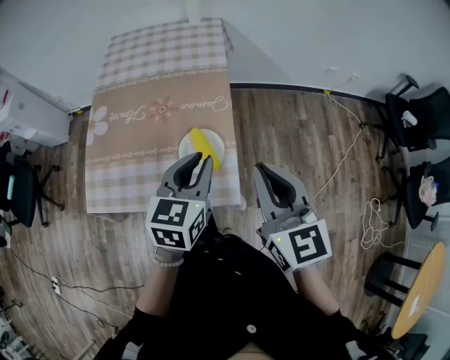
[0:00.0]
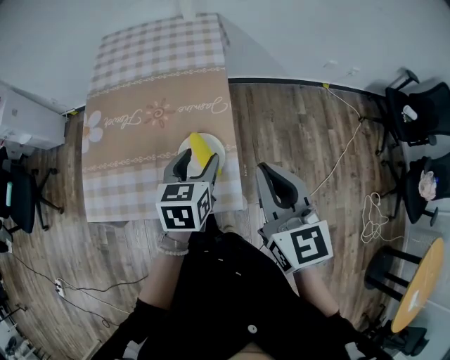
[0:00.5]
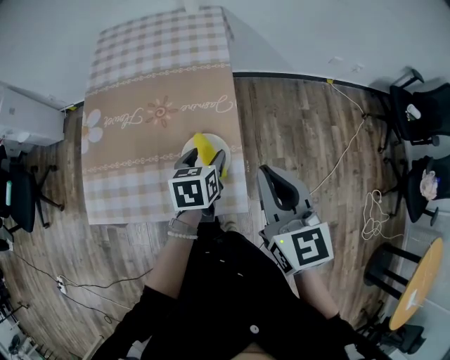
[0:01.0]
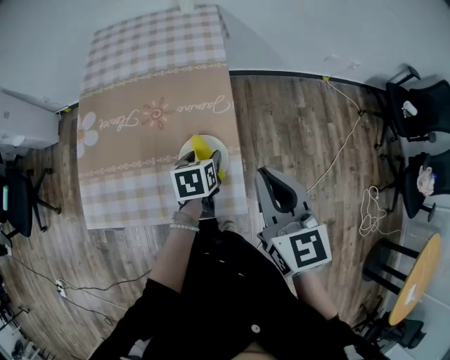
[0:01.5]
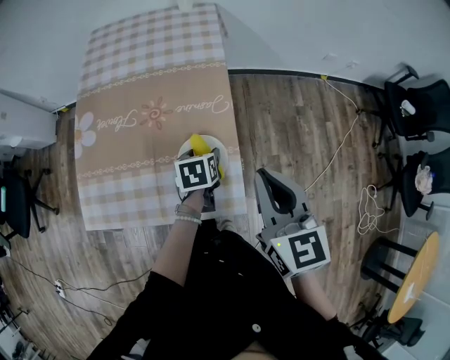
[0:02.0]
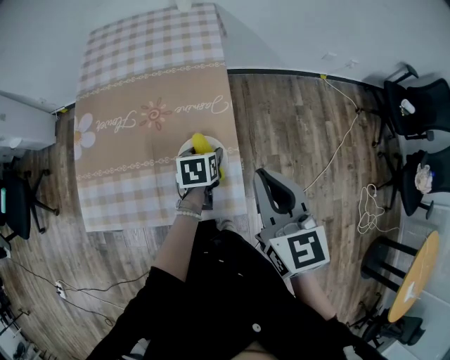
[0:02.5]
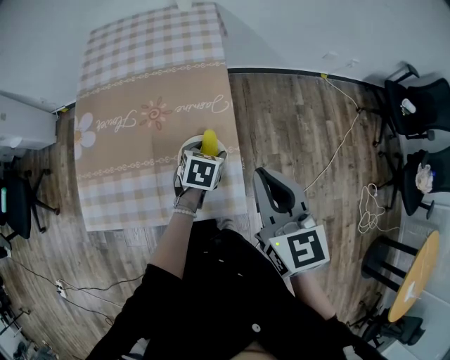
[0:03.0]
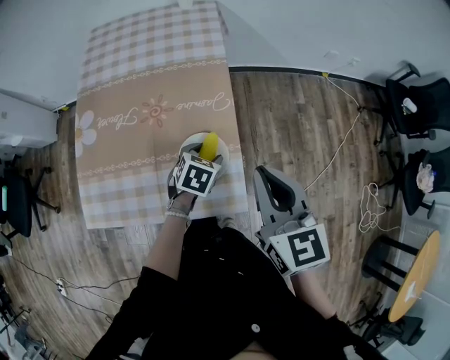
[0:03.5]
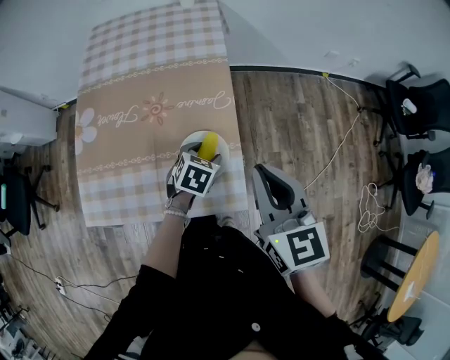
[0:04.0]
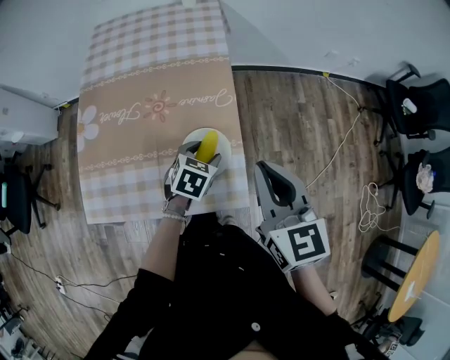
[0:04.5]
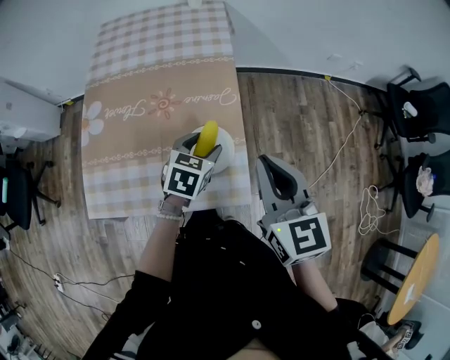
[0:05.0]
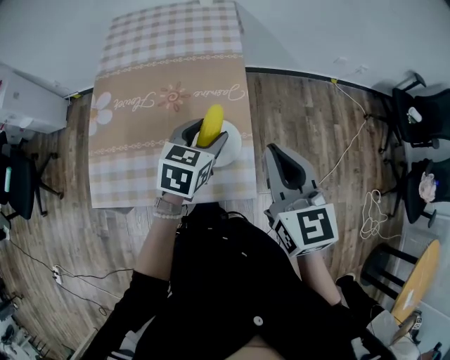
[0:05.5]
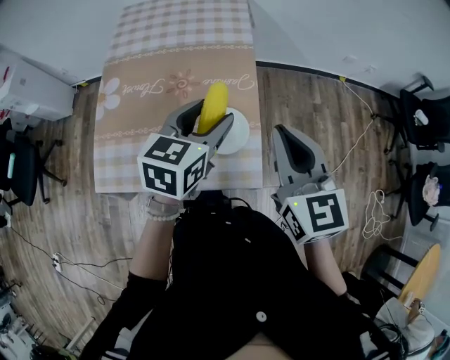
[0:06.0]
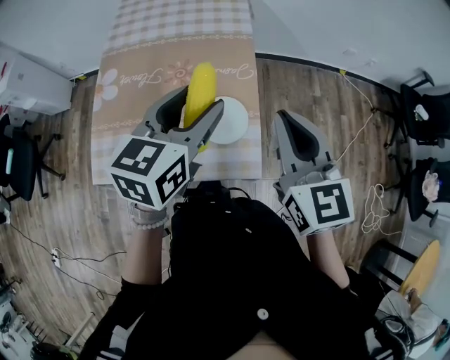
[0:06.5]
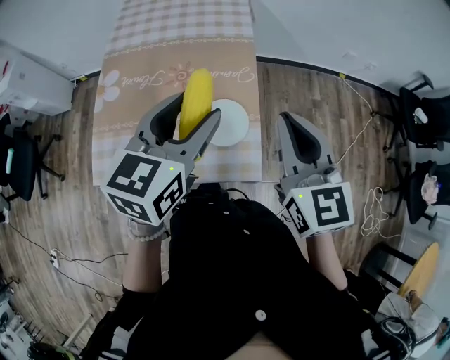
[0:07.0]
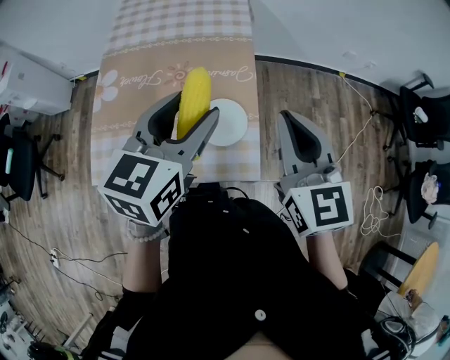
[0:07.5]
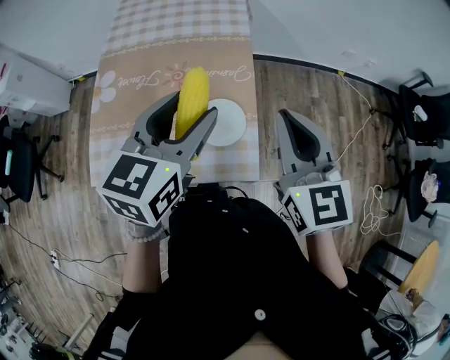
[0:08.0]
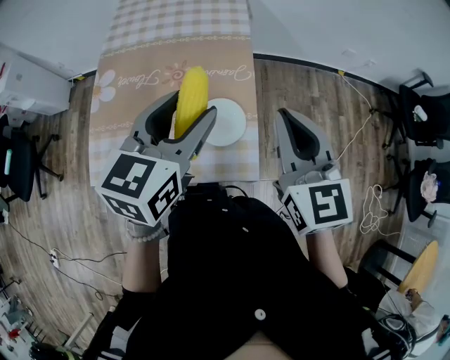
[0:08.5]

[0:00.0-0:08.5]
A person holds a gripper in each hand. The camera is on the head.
0:00.0 to 0:02.0: The right gripper goes about 5 cm forward; the left gripper heads downward and forward, covering about 25 cm, tilts its fingers some 30 degrees downward, and opens up.
0:02.0 to 0:04.0: The left gripper changes its angle by approximately 30 degrees.
0:04.0 to 0:06.5: The left gripper shifts about 25 cm upward, and angles its fingers upward, by roughly 40 degrees.
0:06.5 to 0:08.5: The grippers make only small movements.

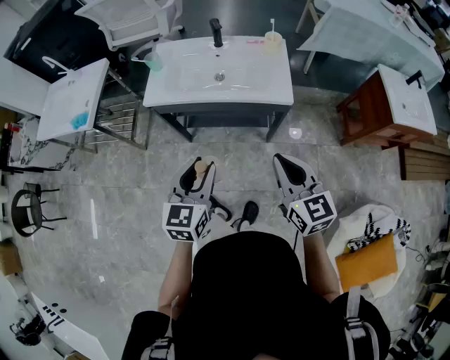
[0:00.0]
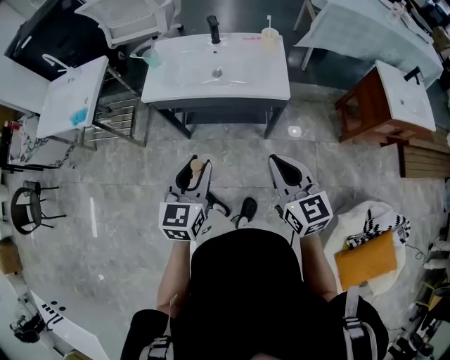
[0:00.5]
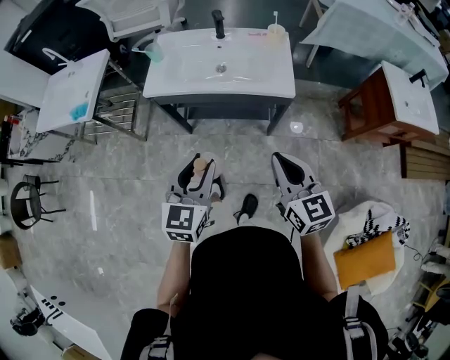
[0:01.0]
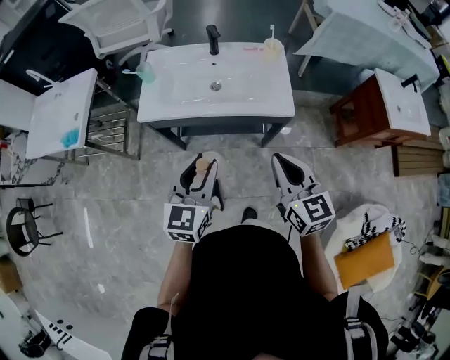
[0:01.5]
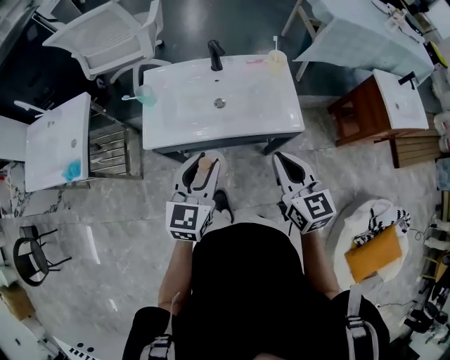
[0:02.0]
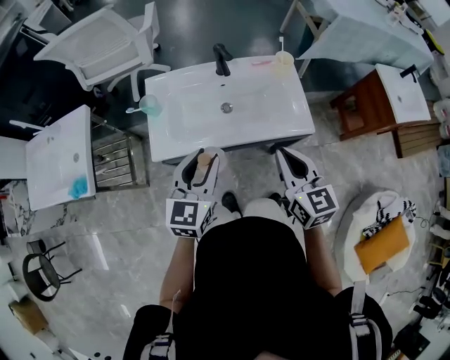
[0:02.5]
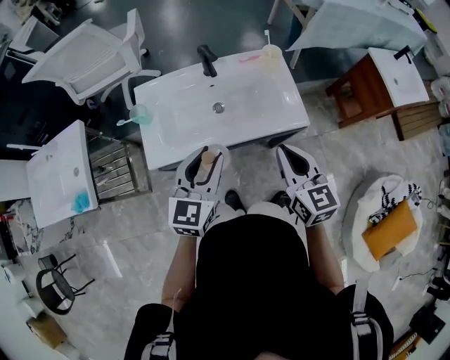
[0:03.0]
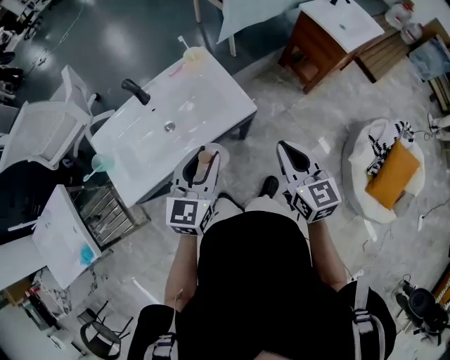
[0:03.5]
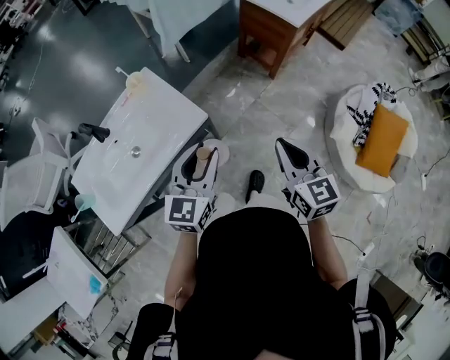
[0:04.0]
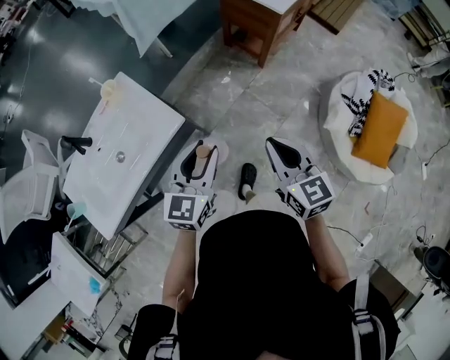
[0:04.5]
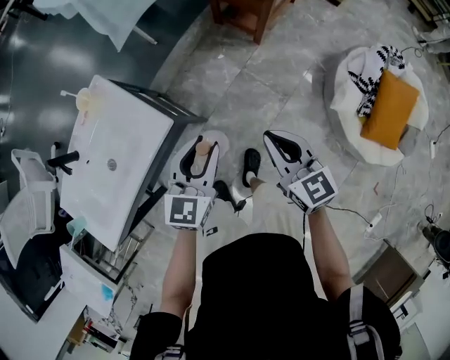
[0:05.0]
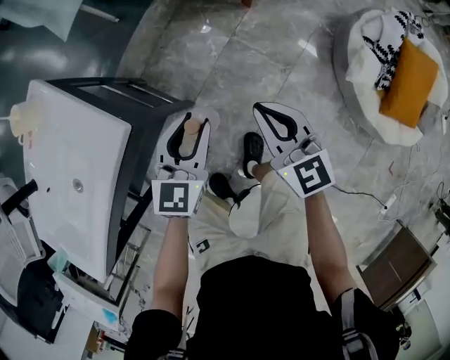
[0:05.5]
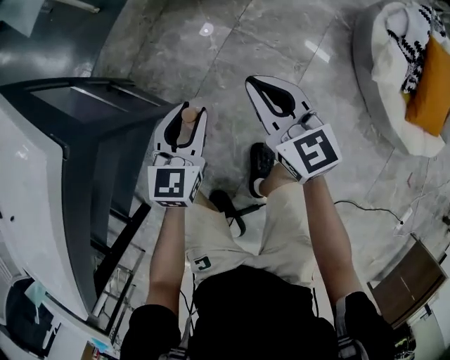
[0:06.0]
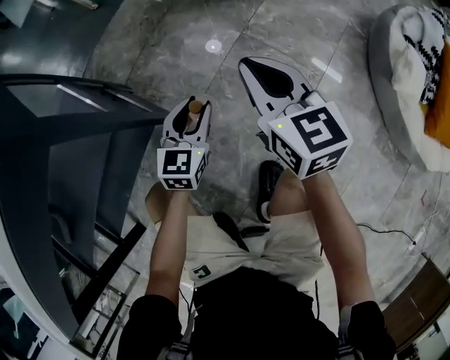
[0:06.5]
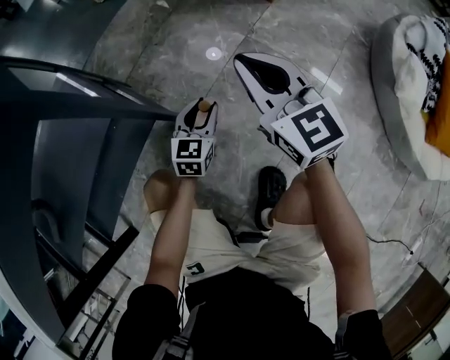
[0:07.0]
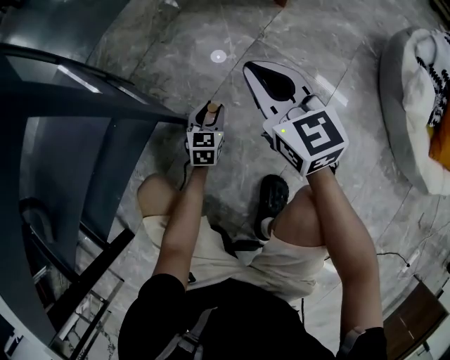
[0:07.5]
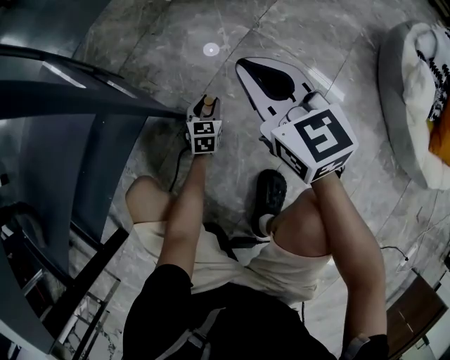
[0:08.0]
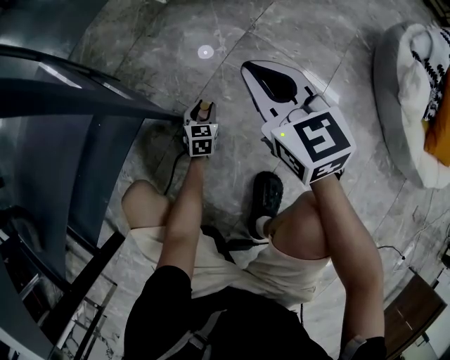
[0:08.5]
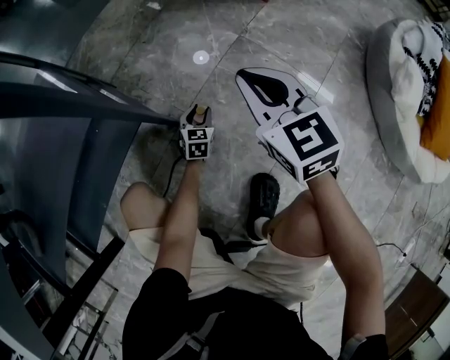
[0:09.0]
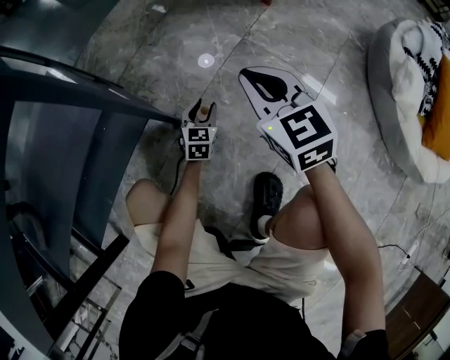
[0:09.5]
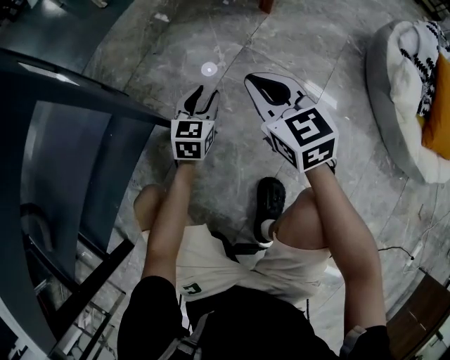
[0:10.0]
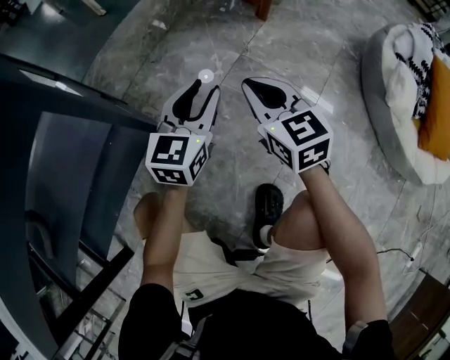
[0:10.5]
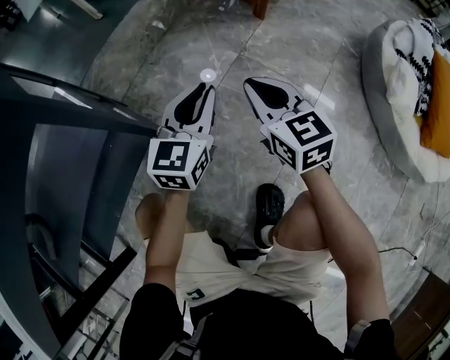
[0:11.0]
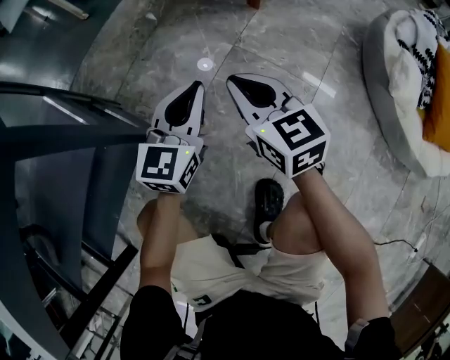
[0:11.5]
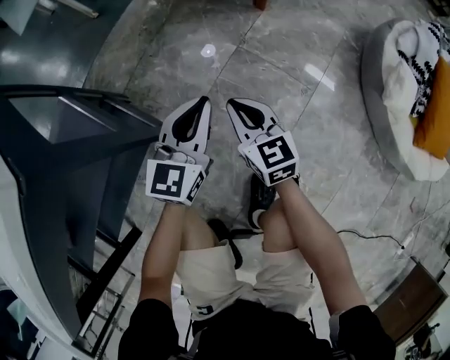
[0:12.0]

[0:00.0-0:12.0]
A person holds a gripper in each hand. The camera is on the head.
0:00.0 to 0:02.0: The left gripper goes roughly 20 cm forward; the right gripper shifts about 20 cm forward and to the left.
0:02.0 to 0:04.0: The right gripper changes place by approximately 30 cm, and changes its angle by roughly 40 degrees. The left gripper shifts by about 30 cm, and swivels some 40 degrees.
0:04.0 to 0:06.0: Both grippers travel together downward, about 50 cm.
0:06.0 to 0:08.0: The right gripper shifts about 15 cm downward and to the left. Meanwhile the left gripper shifts some 40 cm downward.
0:08.0 to 0:10.0: The left gripper heads upward, covering about 20 cm.
0:10.0 to 0:12.0: The left gripper moves upward, about 20 cm, and closes its fingers.

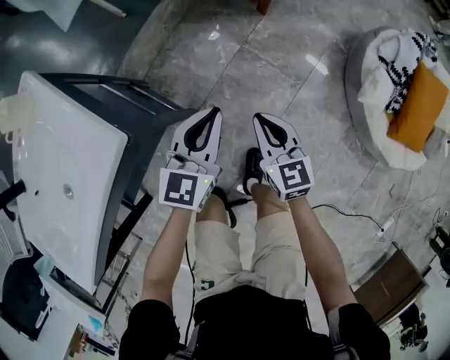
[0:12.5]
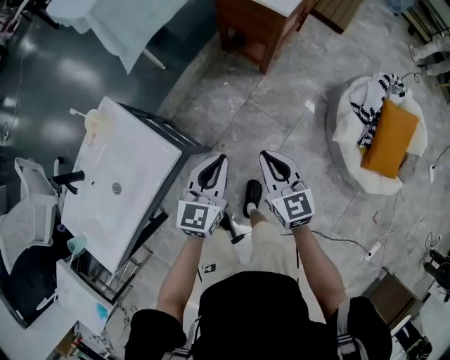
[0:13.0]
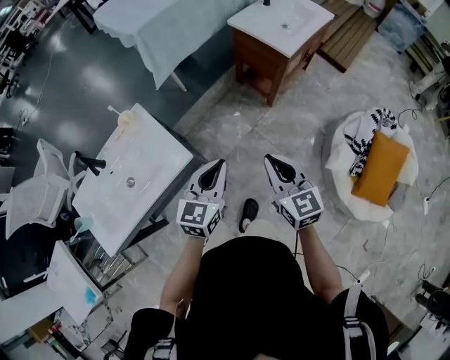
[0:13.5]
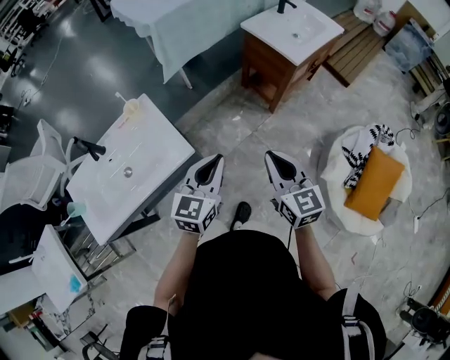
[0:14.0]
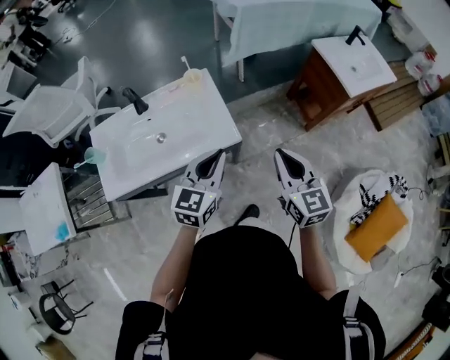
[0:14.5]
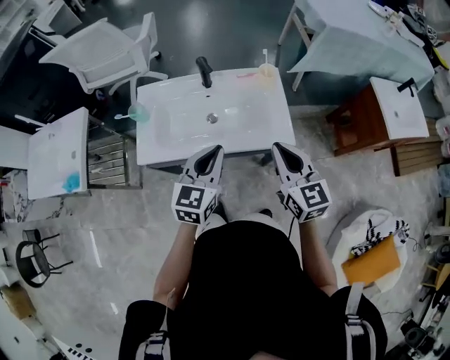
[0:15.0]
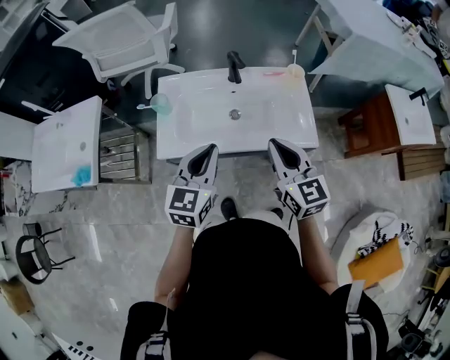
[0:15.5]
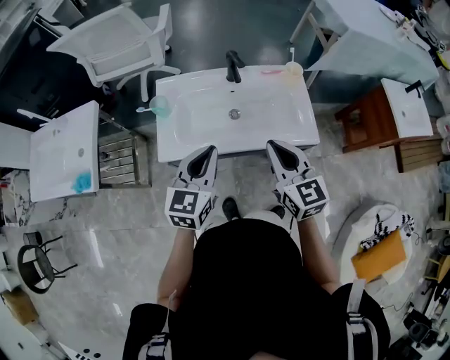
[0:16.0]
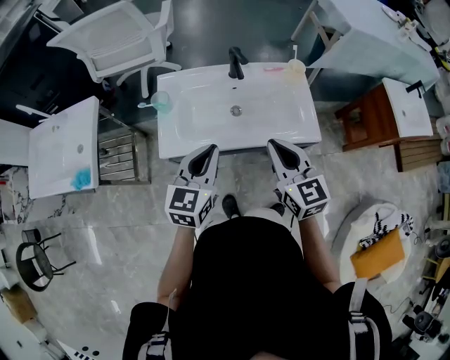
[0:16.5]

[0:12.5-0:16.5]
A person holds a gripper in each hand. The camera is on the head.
0:12.5 to 0:14.5: Both grippers travel together upward, about 40 cm. The right gripper swivels some 30 degrees. Meanwhile the left gripper changes its angle by some 30 degrees.
0:14.5 to 0:16.5: The grippers both shift to the left by some 35 cm. The left gripper rotates about 20 degrees. The right gripper swivels about 20 degrees.

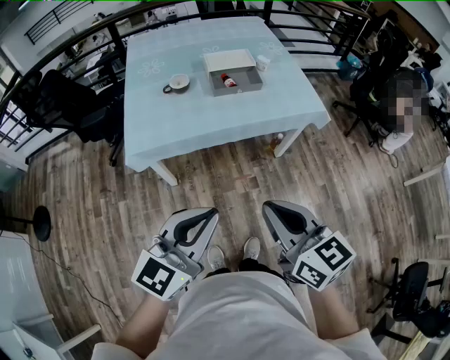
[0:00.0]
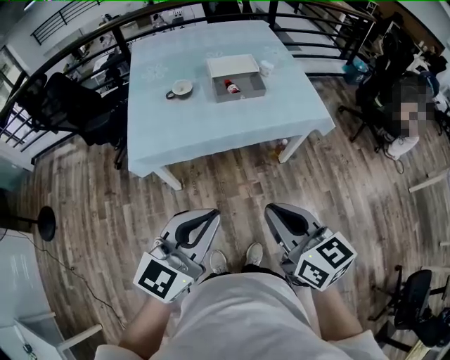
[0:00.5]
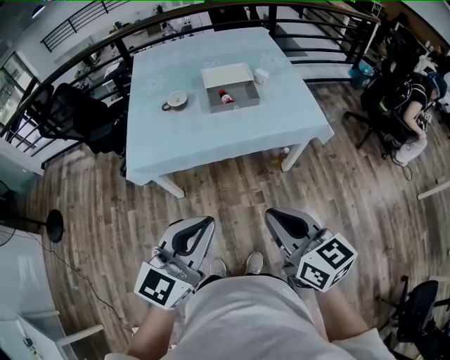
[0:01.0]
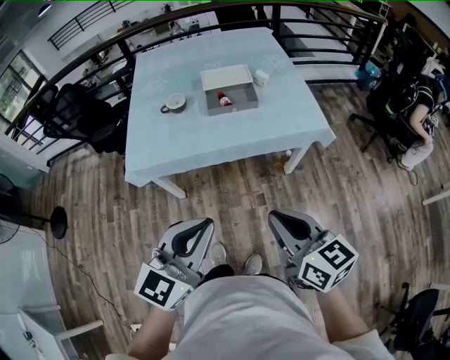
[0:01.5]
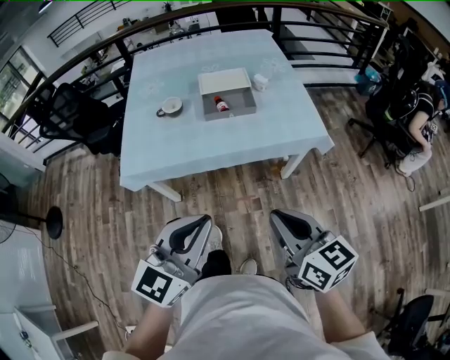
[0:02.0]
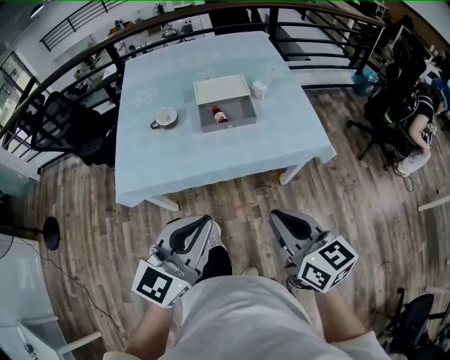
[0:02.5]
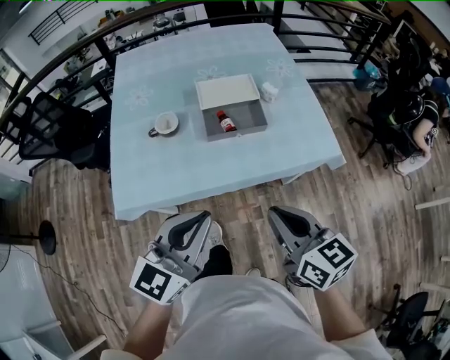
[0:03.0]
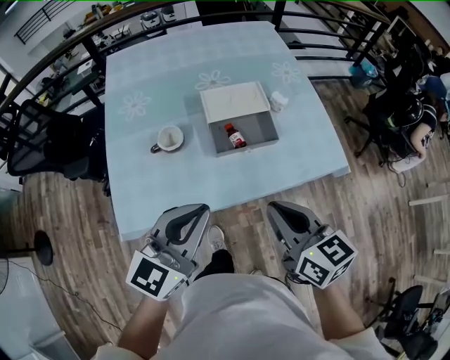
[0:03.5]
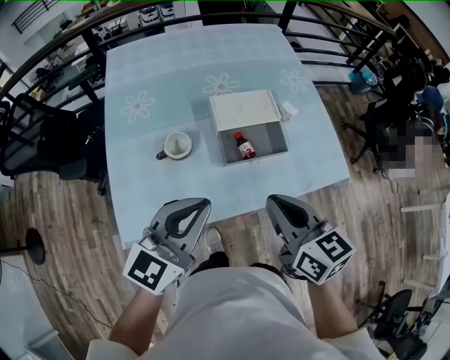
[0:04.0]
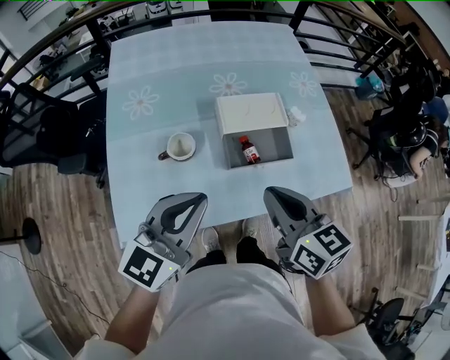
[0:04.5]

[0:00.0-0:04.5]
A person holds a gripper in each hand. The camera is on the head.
0:00.0 to 0:02.0: Both grippers travel together to the right and forward, roughly 15 cm.
0:02.0 to 0:04.5: The pair of grippers is taken forward and to the left, about 40 cm.
